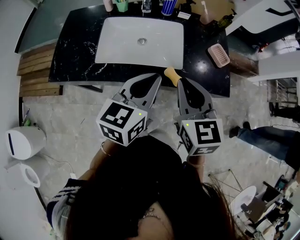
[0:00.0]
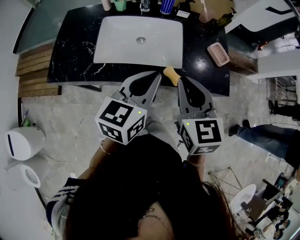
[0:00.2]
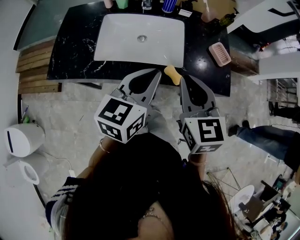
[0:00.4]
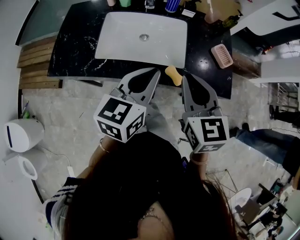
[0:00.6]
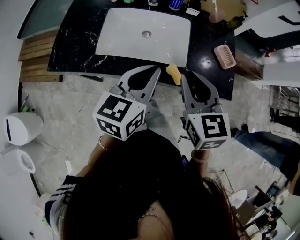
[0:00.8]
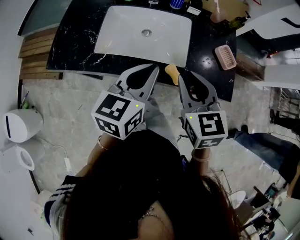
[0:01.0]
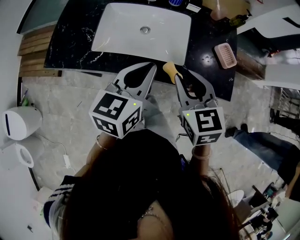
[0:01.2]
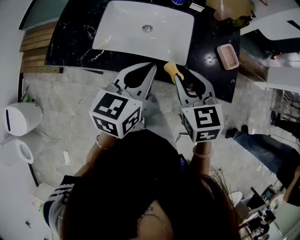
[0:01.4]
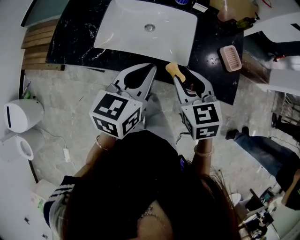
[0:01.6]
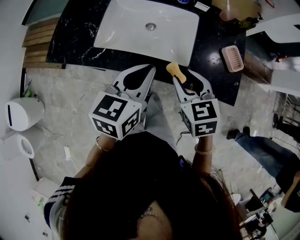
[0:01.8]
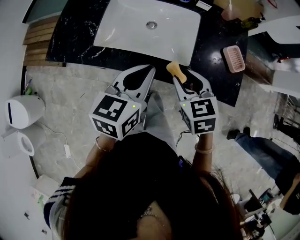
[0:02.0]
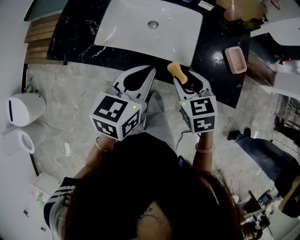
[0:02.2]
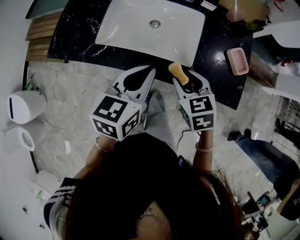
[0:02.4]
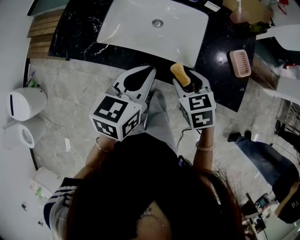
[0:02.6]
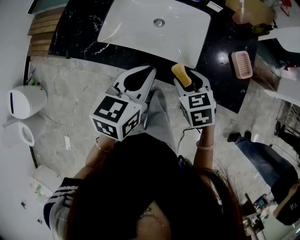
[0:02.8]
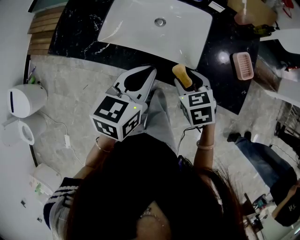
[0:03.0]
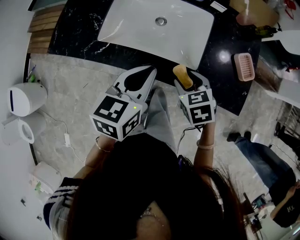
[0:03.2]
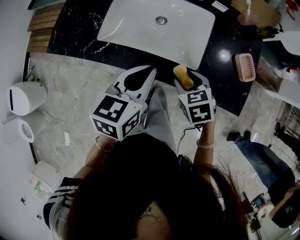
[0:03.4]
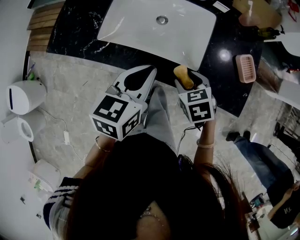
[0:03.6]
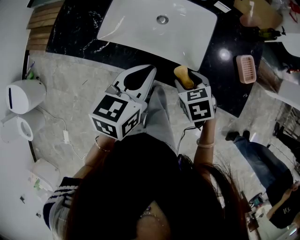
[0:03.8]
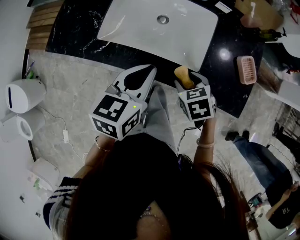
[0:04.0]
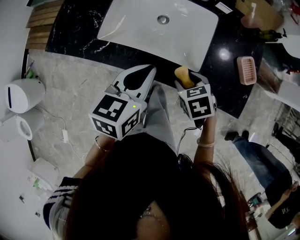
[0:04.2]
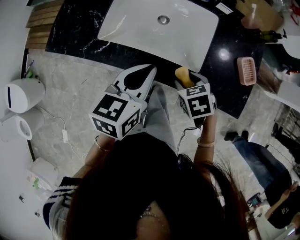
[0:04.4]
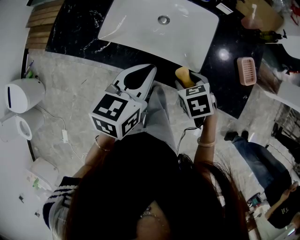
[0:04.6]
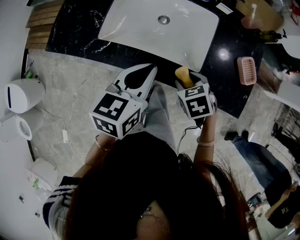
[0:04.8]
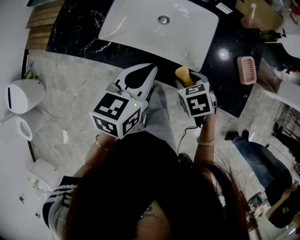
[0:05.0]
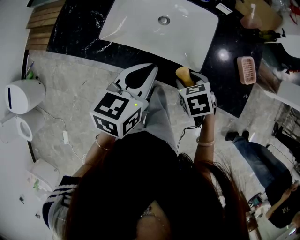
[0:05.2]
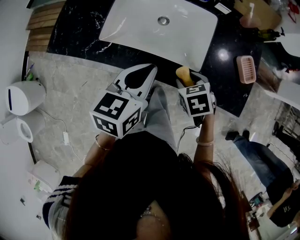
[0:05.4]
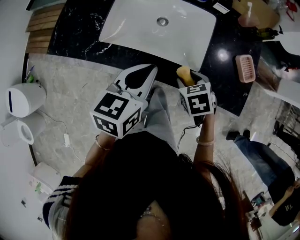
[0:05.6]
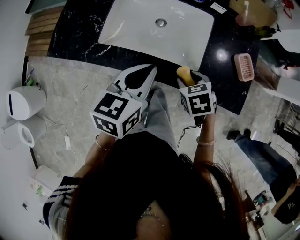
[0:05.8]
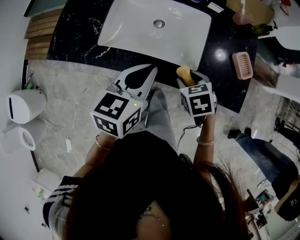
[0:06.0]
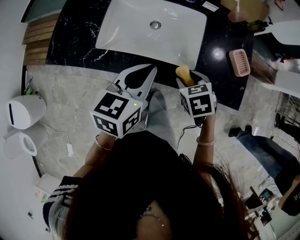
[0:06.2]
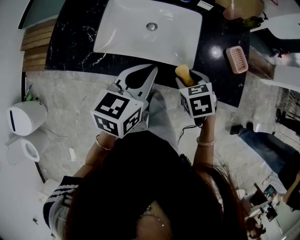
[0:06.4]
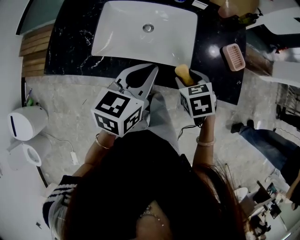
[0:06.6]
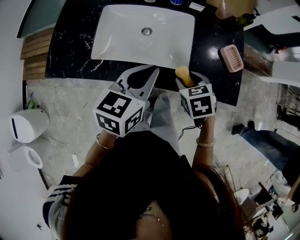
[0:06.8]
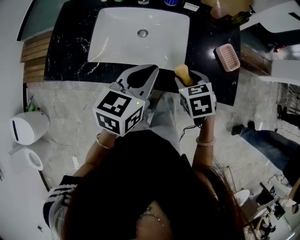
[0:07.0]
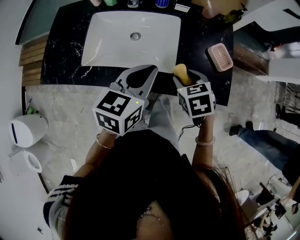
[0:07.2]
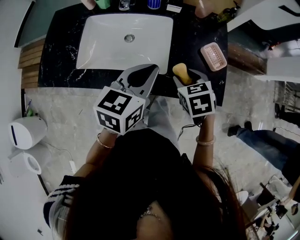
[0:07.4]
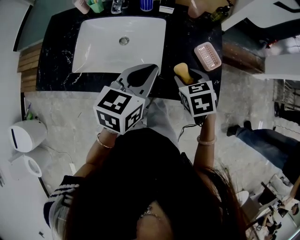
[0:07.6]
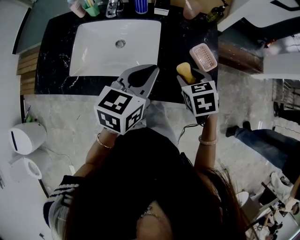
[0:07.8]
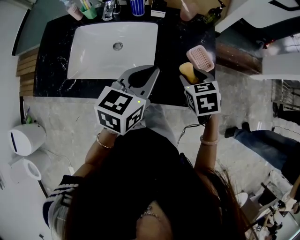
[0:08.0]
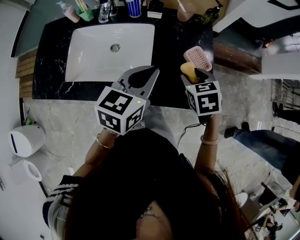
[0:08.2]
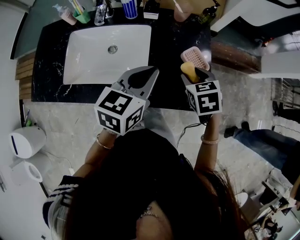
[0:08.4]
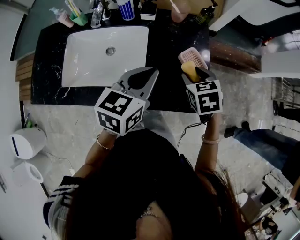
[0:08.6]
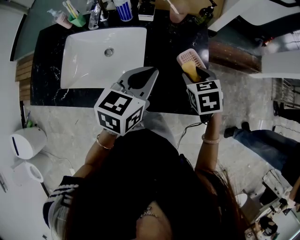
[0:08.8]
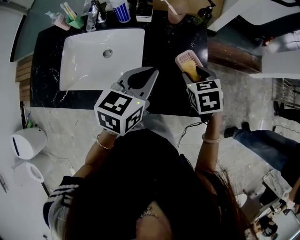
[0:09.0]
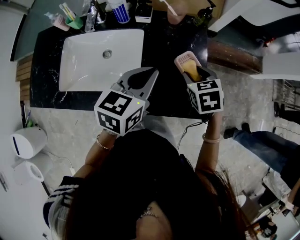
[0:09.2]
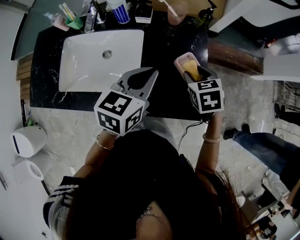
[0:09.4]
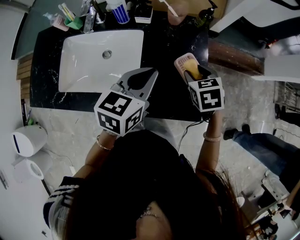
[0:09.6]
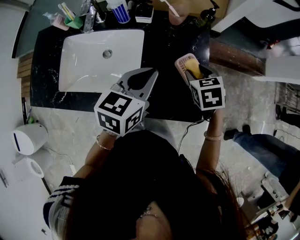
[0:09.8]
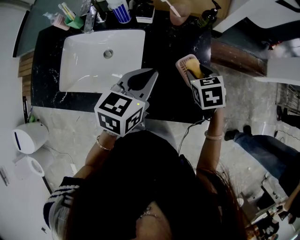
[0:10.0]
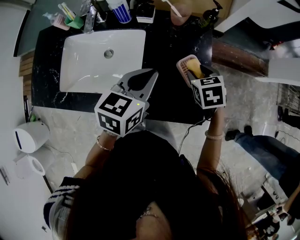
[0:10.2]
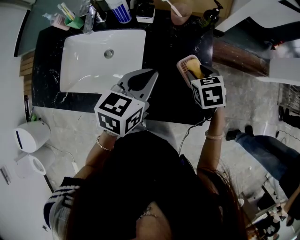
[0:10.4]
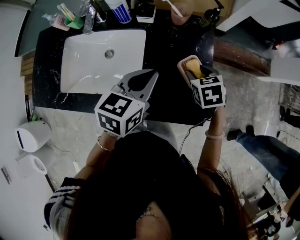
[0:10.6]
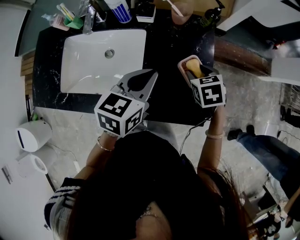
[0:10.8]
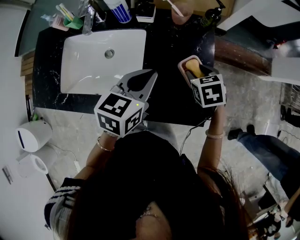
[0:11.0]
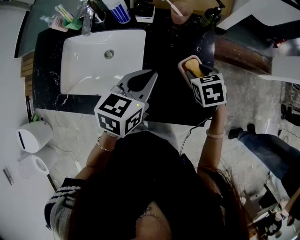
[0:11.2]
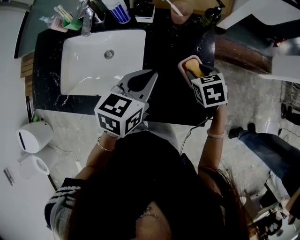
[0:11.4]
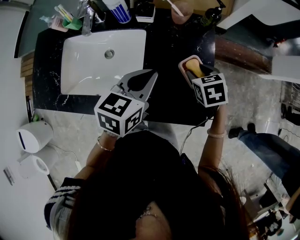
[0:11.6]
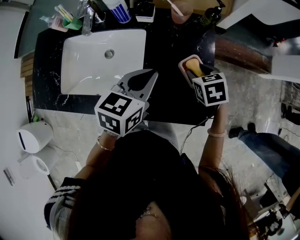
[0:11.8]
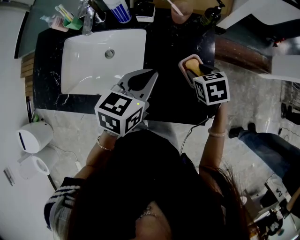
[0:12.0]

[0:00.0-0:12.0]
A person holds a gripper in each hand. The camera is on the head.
0:00.0 to 0:01.6: The left gripper shifts by roughly 5 cm; the right gripper heads downward, covering about 10 cm, rotates about 20 degrees, and opens up.
0:01.6 to 0:03.0: The right gripper shifts approximately 10 cm downward.
0:03.0 to 0:06.0: The grippers stay close to where they were, moving slightly.
0:06.0 to 0:07.6: The right gripper travels to the right and upward by about 15 cm; the left gripper travels to the right by roughly 15 cm.
0:07.6 to 0:09.0: The grippers both shift to the right and forward by roughly 10 cm.
0:09.0 to 0:10.4: The right gripper ends up roughly 5 cm from where it was.
0:10.4 to 0:12.0: The grippers stay close to where they were, moving slightly.

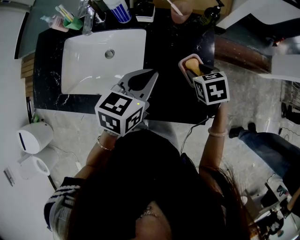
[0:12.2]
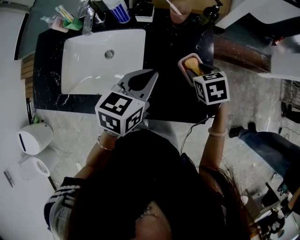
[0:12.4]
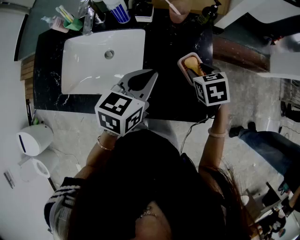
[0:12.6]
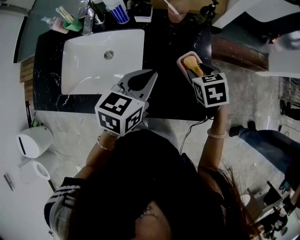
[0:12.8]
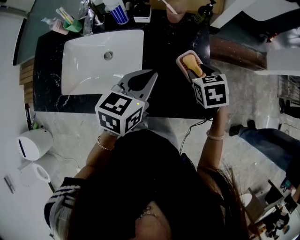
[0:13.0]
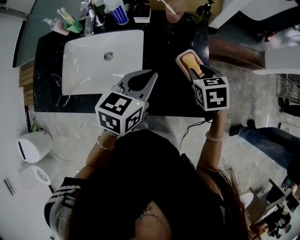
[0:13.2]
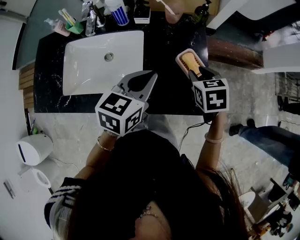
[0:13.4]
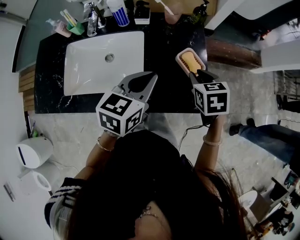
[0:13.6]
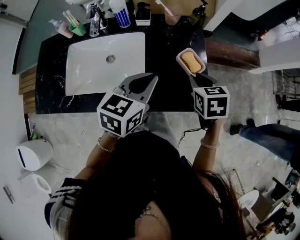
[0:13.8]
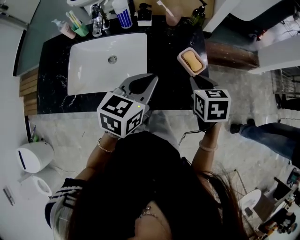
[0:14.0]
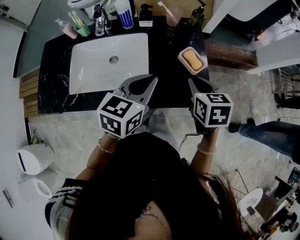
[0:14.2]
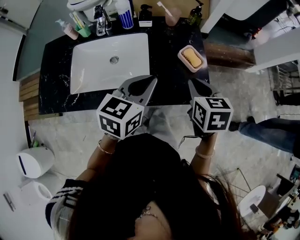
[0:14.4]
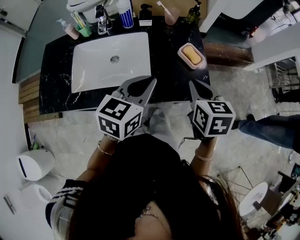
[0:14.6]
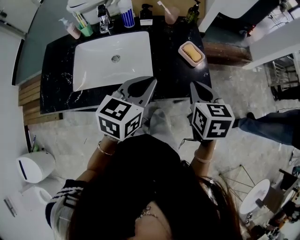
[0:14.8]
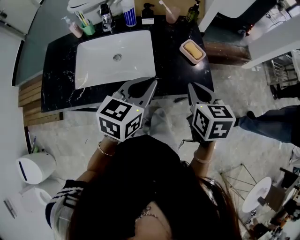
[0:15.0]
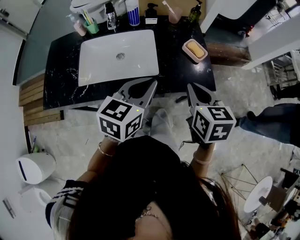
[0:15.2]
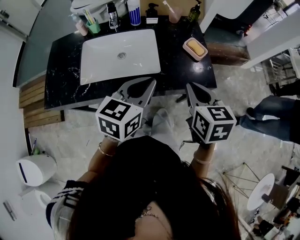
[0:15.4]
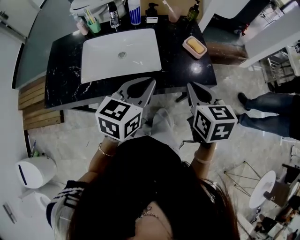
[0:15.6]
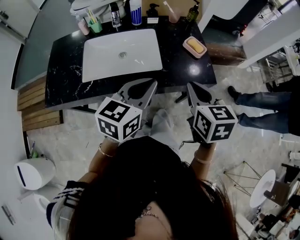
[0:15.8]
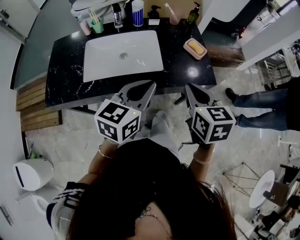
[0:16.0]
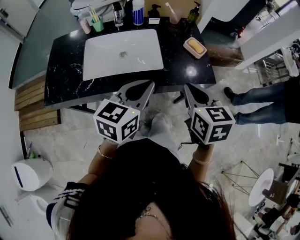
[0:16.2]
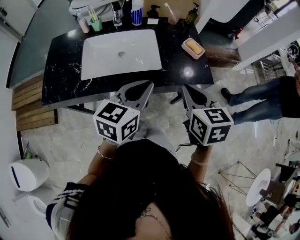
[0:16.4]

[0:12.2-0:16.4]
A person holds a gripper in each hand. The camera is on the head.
0:12.2 to 0:13.6: The right gripper travels upward and backward by about 10 cm, and closes its fingers. The left gripper moves backward, about 5 cm.
0:13.6 to 0:15.0: The left gripper travels backward by approximately 15 cm. Meanwhile the right gripper goes roughly 20 cm backward and upward, changes its angle by some 20 degrees, and closes its fingers.
0:15.0 to 0:16.4: The two grippers go roughly 10 cm backward and to the left.

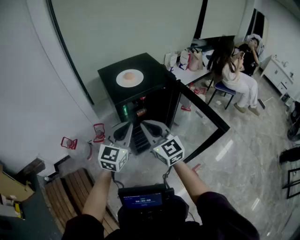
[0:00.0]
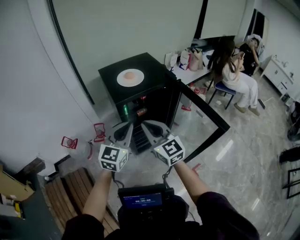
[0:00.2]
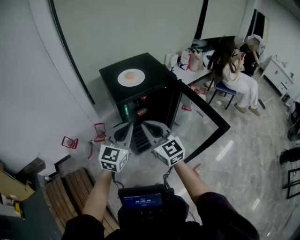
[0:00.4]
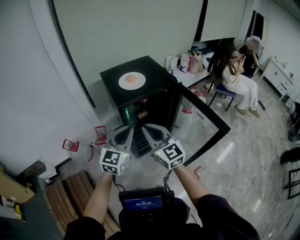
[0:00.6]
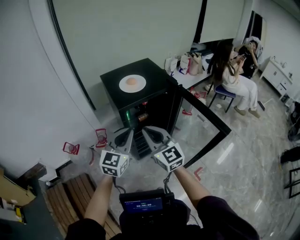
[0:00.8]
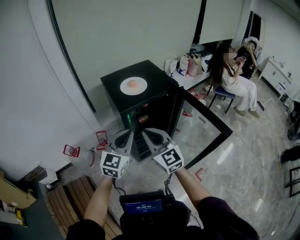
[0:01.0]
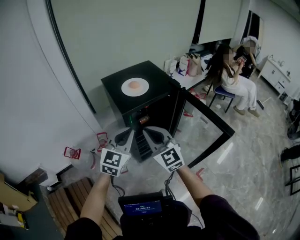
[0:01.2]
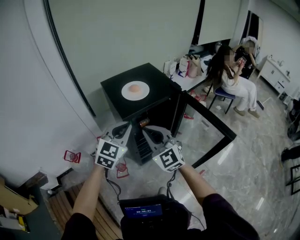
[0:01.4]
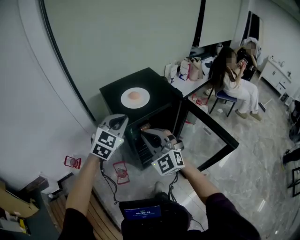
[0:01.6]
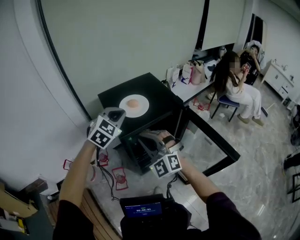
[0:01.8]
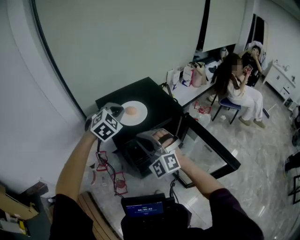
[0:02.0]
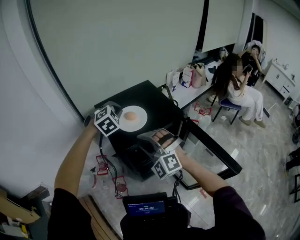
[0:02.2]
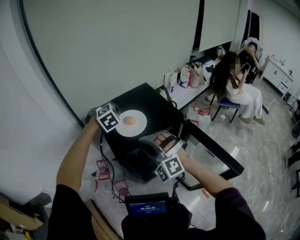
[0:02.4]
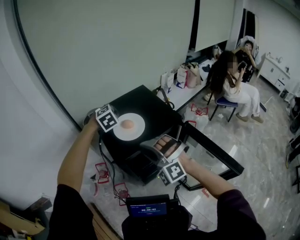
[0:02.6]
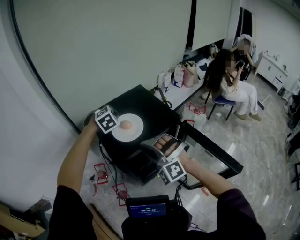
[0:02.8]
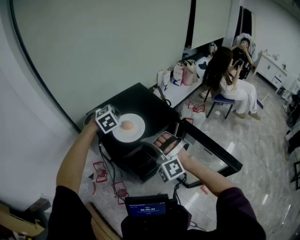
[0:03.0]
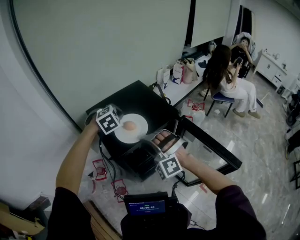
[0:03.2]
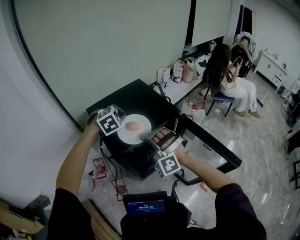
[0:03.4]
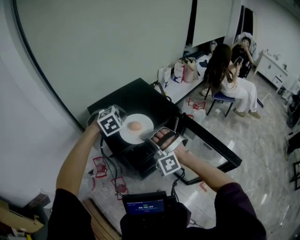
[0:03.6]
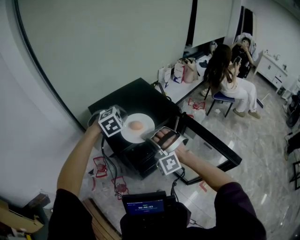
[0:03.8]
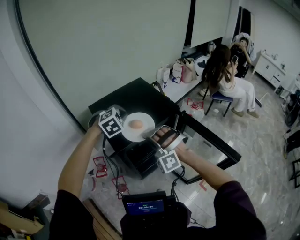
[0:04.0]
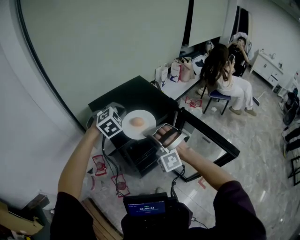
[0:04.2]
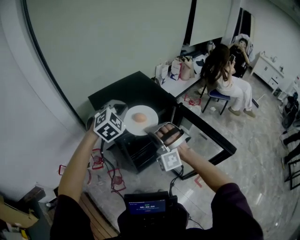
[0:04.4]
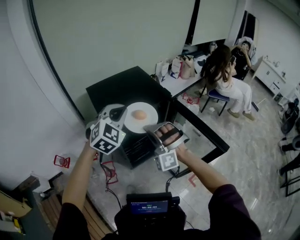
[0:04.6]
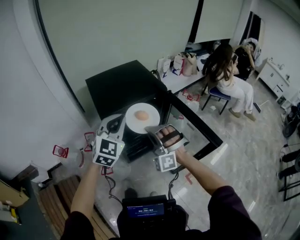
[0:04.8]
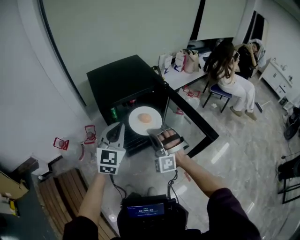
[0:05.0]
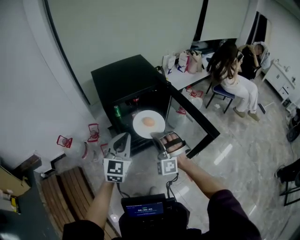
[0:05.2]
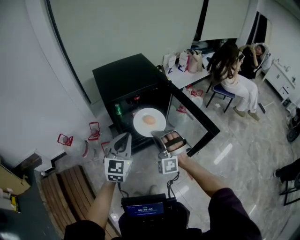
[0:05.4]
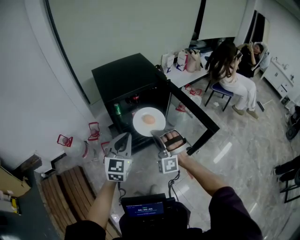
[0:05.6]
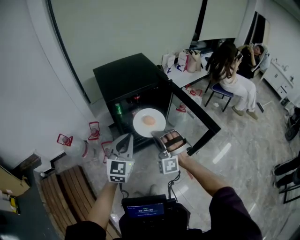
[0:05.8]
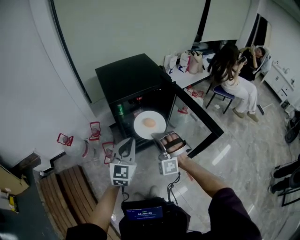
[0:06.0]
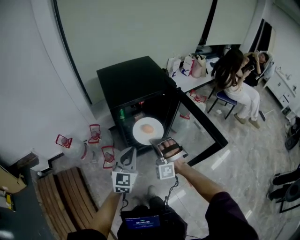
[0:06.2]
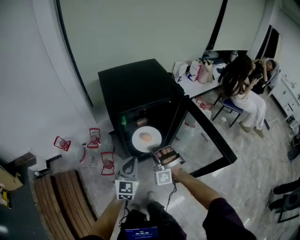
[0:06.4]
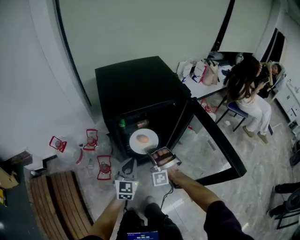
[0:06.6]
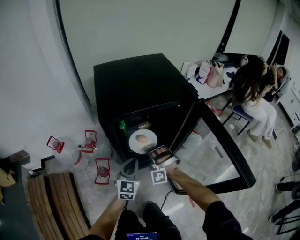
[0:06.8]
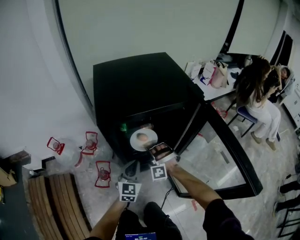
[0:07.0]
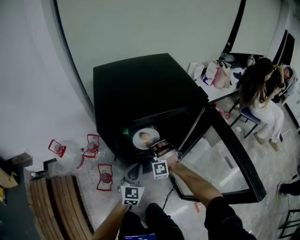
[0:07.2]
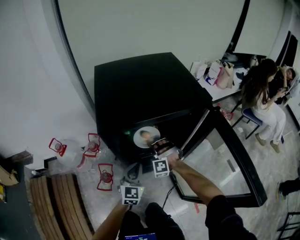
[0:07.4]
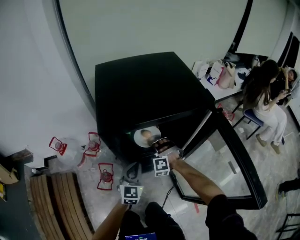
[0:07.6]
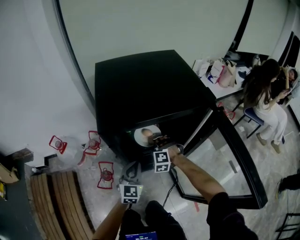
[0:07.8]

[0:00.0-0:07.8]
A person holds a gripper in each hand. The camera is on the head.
0:00.0 to 0:01.6: The right gripper shifts roughly 5 cm forward, and turns by some 40 degrees; the left gripper moves forward, some 15 cm, and rotates about 30 degrees.
0:01.6 to 0:03.2: The left gripper moves forward, about 20 cm, and angles its fingers downward, by roughly 30 degrees. Meanwhile the right gripper heads forward, covering some 10 cm, rolls counterclockwise, seen from behind, by roughly 40 degrees, and opens its fingers.
0:03.2 to 0:04.6: The left gripper travels backward and upward by roughly 20 cm, and tilts its fingers about 30 degrees upward. The right gripper heads backward, covering about 10 cm, and closes up.
0:04.6 to 0:06.2: The right gripper heads downward and backward, covering some 15 cm; the left gripper is displaced backward and downward by about 25 cm, and changes its angle by about 40 degrees.
0:06.2 to 0:07.8: The two grippers go approximately 35 cm downward and forward. The right gripper changes its angle by approximately 30 degrees.
